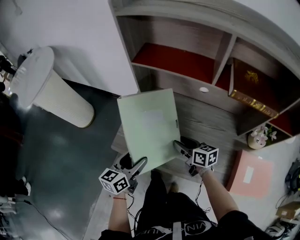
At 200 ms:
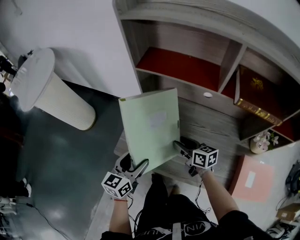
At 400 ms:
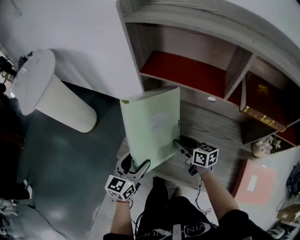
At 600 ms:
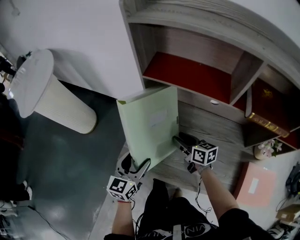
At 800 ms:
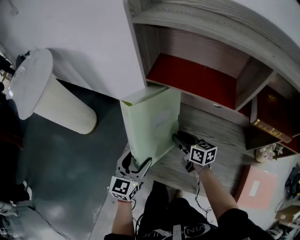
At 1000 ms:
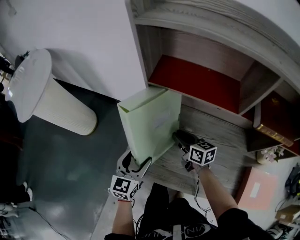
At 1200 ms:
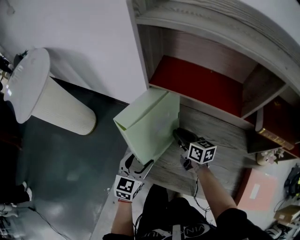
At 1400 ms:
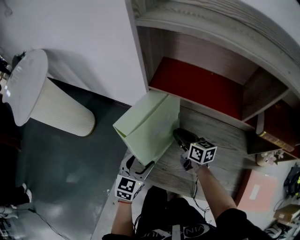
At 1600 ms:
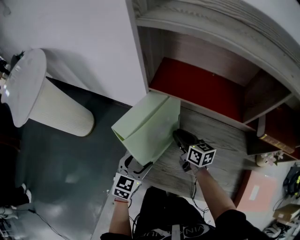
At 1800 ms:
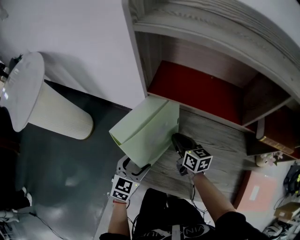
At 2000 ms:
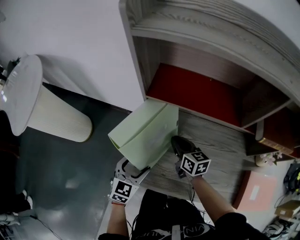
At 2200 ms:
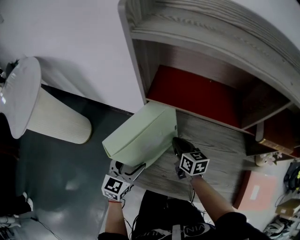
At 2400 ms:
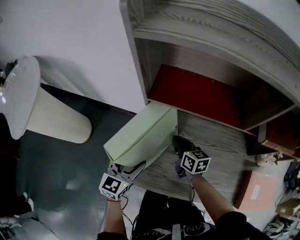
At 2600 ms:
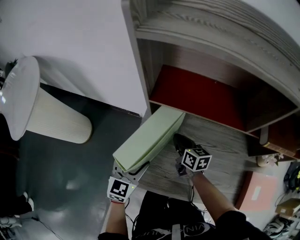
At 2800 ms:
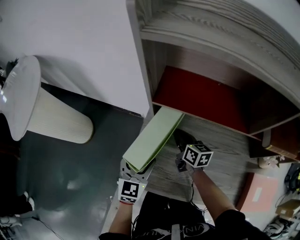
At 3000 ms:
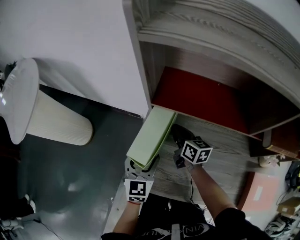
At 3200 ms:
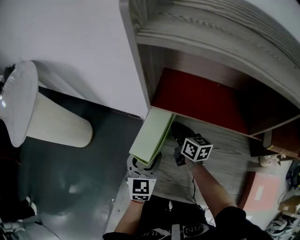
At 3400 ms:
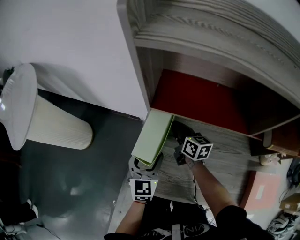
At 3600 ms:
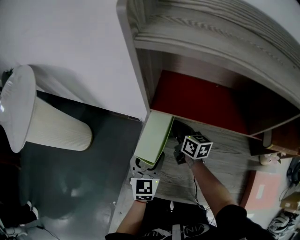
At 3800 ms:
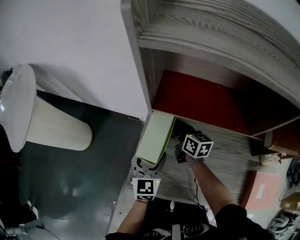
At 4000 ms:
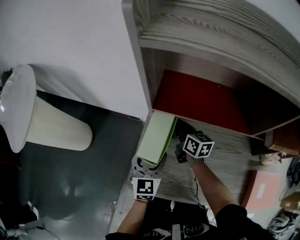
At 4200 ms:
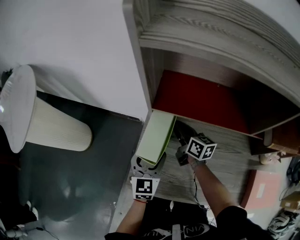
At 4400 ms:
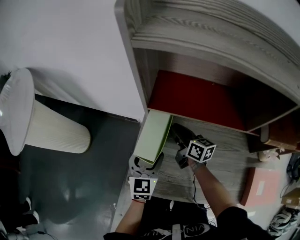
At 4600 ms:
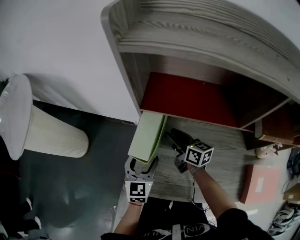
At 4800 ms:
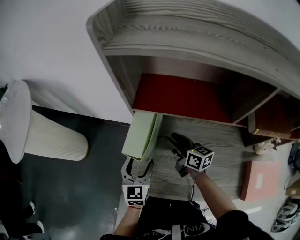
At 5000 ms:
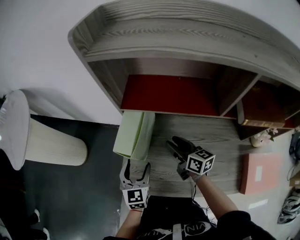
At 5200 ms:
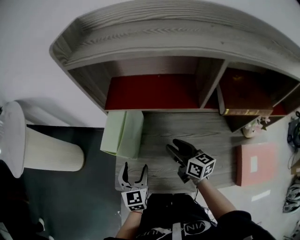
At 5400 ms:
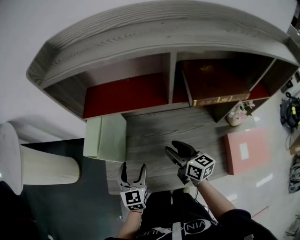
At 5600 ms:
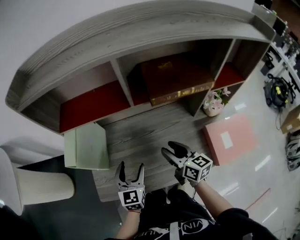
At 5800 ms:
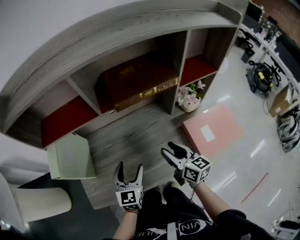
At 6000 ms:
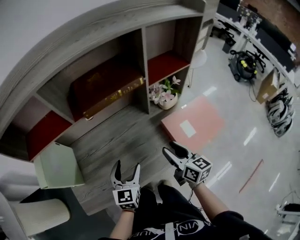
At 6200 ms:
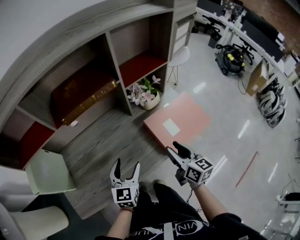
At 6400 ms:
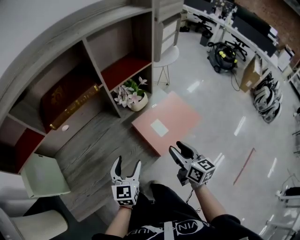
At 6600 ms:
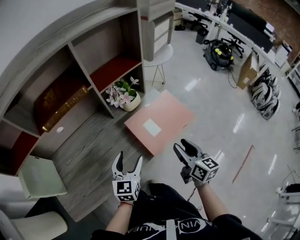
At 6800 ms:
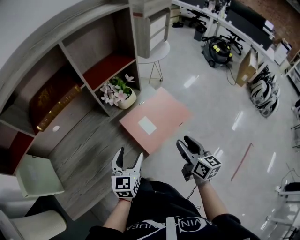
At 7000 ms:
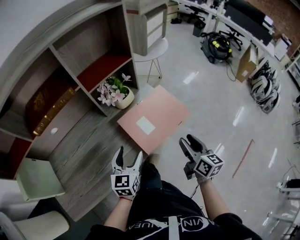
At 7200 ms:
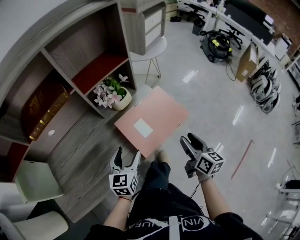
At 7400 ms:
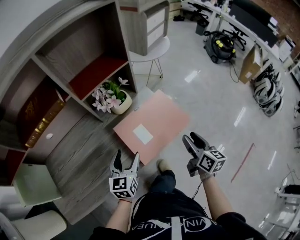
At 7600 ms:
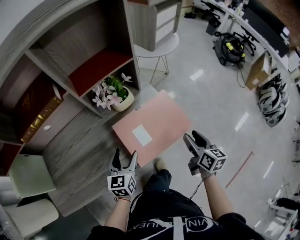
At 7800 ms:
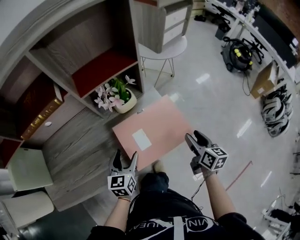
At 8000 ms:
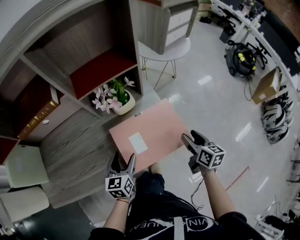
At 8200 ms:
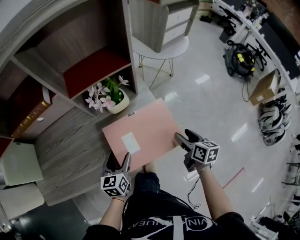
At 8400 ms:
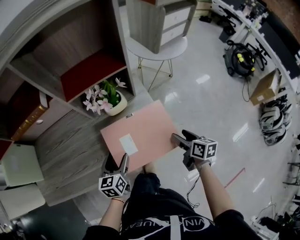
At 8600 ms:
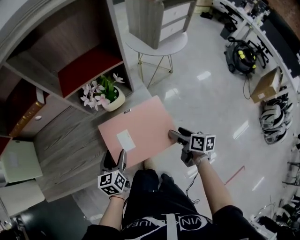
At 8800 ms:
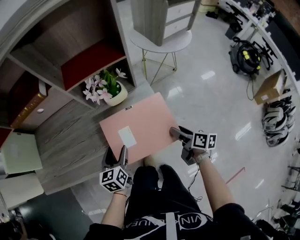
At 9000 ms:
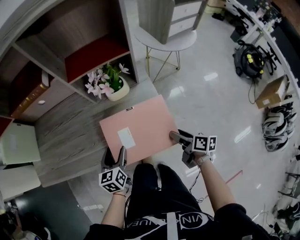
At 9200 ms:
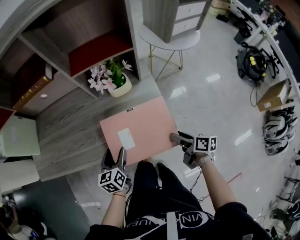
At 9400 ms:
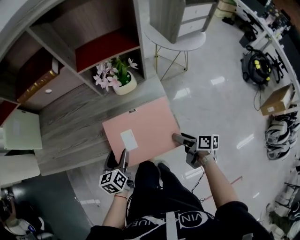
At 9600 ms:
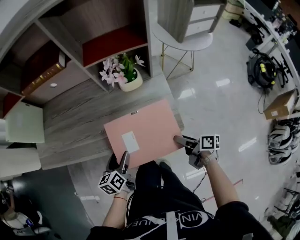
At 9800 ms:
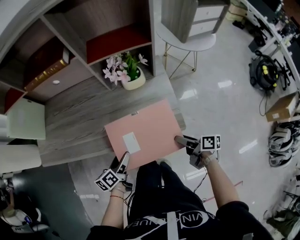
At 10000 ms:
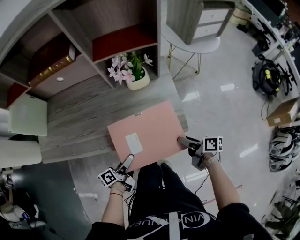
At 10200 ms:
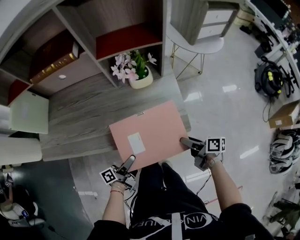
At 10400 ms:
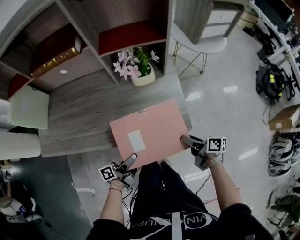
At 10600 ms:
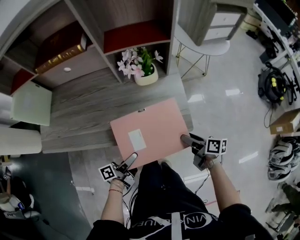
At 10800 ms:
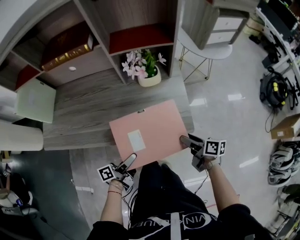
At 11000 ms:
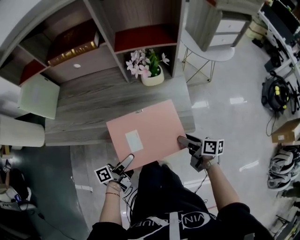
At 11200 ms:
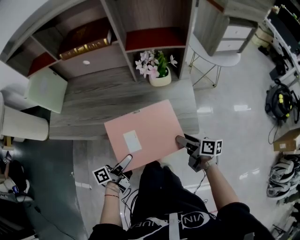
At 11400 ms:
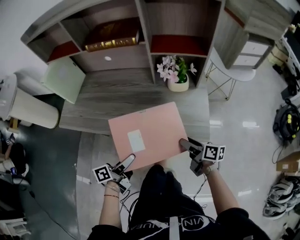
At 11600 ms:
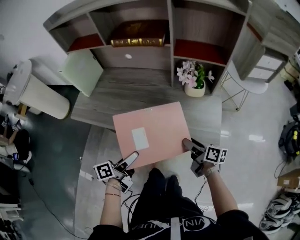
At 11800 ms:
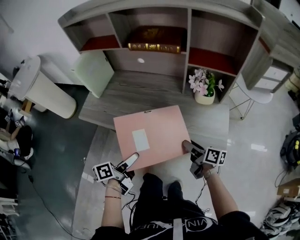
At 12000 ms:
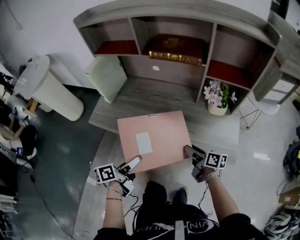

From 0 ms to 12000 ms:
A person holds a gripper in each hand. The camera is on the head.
From 0 ms to 1600 ms: Both grippers travel together forward, approximately 15 cm. The left gripper turns by roughly 30 degrees.
From 1600 ms to 3000 ms: Both grippers move forward, roughly 5 cm.
From 3000 ms to 4400 ms: The grippers make only small movements.
From 4400 ms to 6000 ms: The left gripper moves approximately 40 cm, and turns by about 30 degrees. Meanwhile the right gripper shifts by some 60 cm, and turns by roughly 40 degrees.
From 6000 ms to 7600 ms: The left gripper goes about 25 cm to the right. Meanwhile the right gripper heads to the right, covering some 35 cm, and turns by some 20 degrees.
From 7600 ms to 9000 ms: The right gripper travels downward by some 5 cm, and rotates roughly 40 degrees; the left gripper swivels some 30 degrees.
From 9000 ms to 10400 ms: The left gripper travels backward by roughly 10 cm, and twists about 50 degrees counterclockwise, seen from behind.
From 10400 ms to 12000 ms: The right gripper heads to the left, covering roughly 25 cm, and turns by some 20 degrees. Meanwhile the left gripper travels to the left and upward by roughly 25 cm, and changes its angle by some 30 degrees.

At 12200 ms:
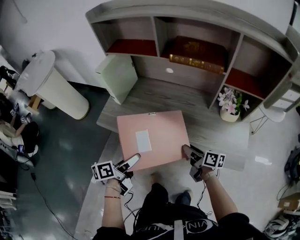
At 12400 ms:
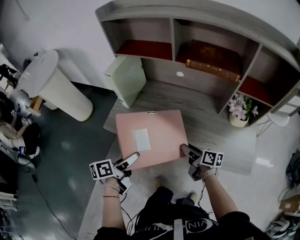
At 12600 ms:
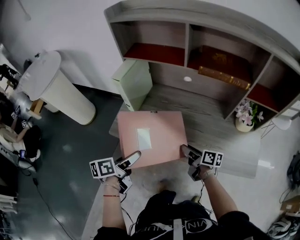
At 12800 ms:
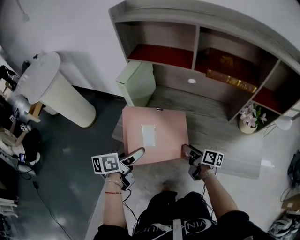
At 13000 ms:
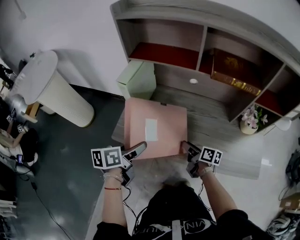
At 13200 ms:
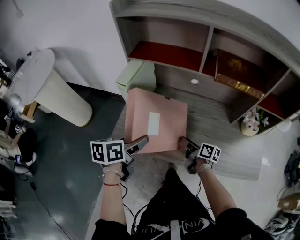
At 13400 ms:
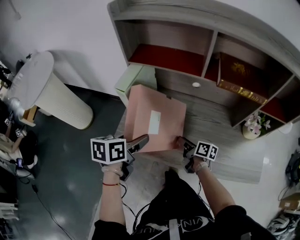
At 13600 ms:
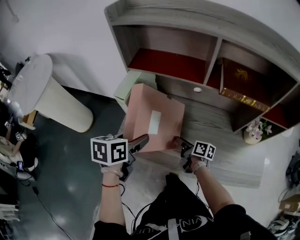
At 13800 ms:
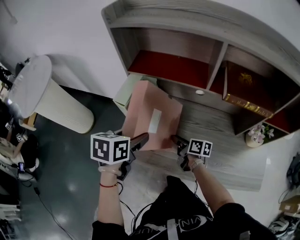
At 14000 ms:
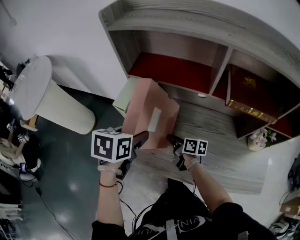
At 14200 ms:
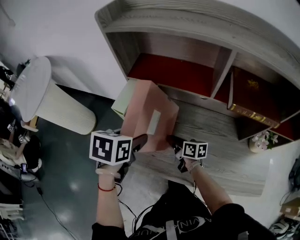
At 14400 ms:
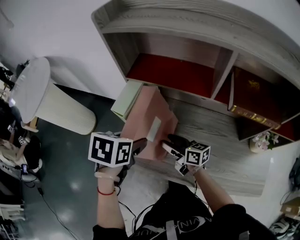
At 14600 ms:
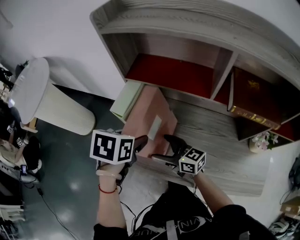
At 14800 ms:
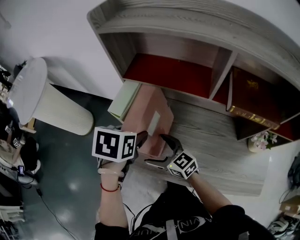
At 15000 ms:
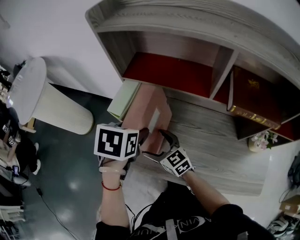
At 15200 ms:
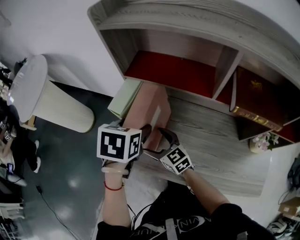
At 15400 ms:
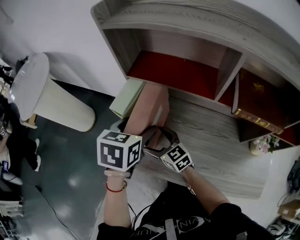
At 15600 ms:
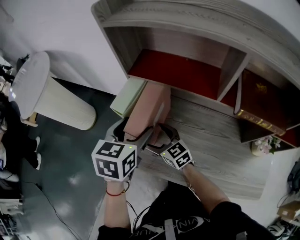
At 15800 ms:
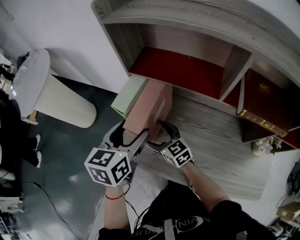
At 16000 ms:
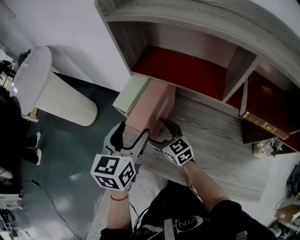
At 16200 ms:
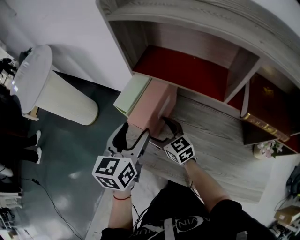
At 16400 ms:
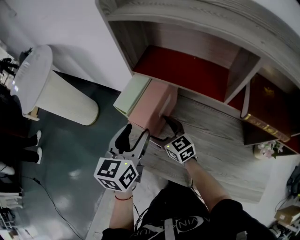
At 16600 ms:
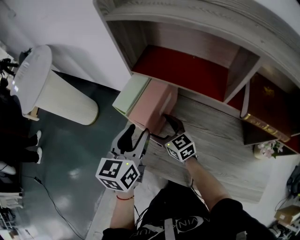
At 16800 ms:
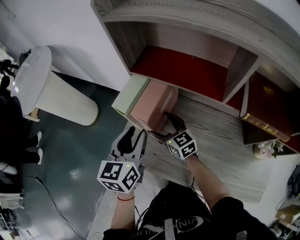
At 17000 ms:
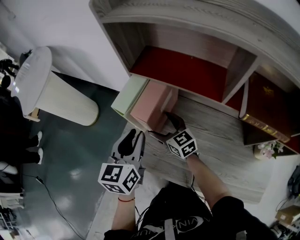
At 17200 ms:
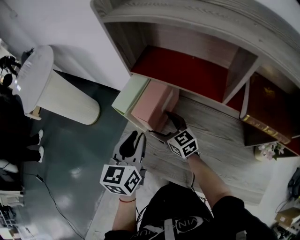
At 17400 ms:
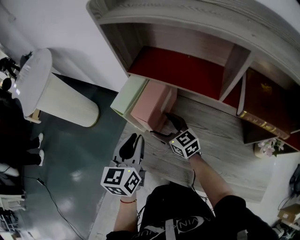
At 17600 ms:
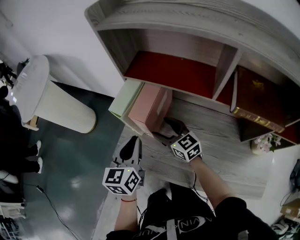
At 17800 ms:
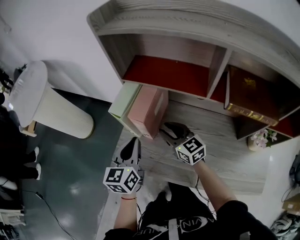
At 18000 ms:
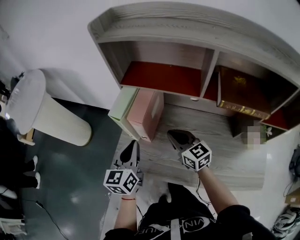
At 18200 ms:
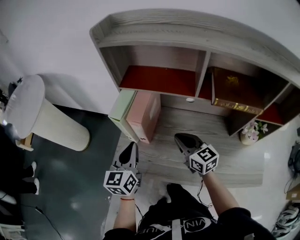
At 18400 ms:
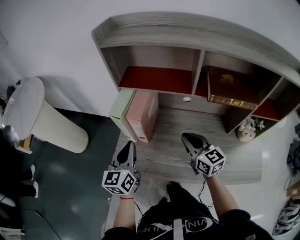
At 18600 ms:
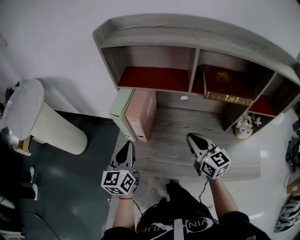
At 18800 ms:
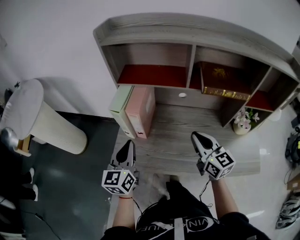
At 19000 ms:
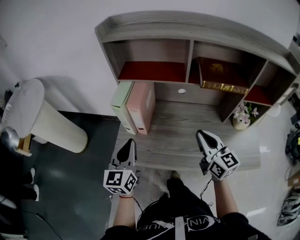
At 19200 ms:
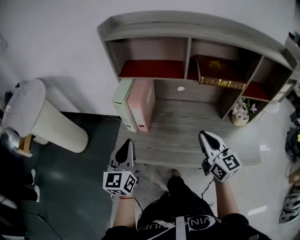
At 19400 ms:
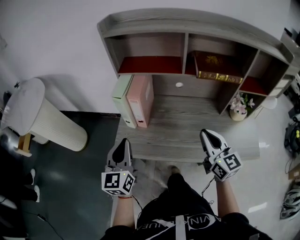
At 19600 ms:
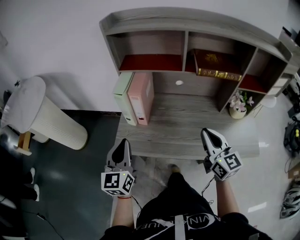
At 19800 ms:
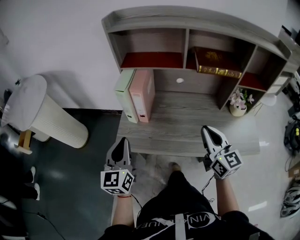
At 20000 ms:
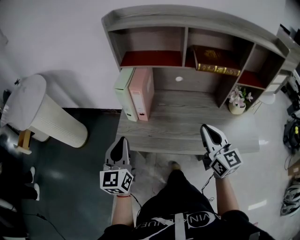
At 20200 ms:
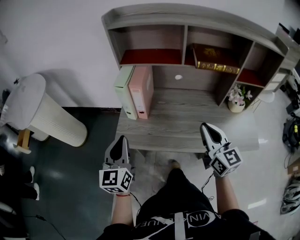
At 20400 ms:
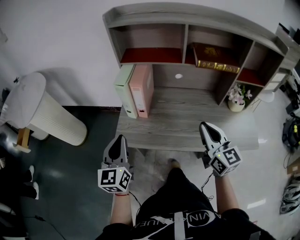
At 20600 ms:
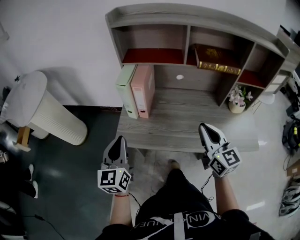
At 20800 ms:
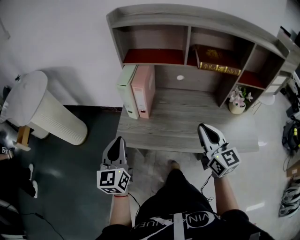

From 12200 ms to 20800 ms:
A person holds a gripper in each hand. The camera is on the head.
From 12200 ms to 13600 ms: The two grippers go about 30 cm forward and to the left. The left gripper turns by some 40 degrees.
From 13600 ms to 15000 ms: The right gripper heads to the left and upward, covering some 15 cm, rotates around the line of its fingers by some 60 degrees, counterclockwise from behind, and opens its fingers, while the left gripper heads forward, covering about 10 cm, and rotates about 20 degrees.
From 15000 ms to 16600 ms: The left gripper angles its fingers upward, by roughly 40 degrees. The right gripper is displaced forward by approximately 5 cm.
From 16600 ms to 18000 ms: The left gripper closes up. The right gripper is displaced to the right, backward and upward by approximately 10 cm, and closes its fingers.
From 18000 ms to 19400 ms: The left gripper is displaced backward and upward by approximately 10 cm. Meanwhile the right gripper goes approximately 25 cm backward, to the right and upward, and rotates some 30 degrees.
From 19400 ms to 20800 ms: The left gripper changes place by some 5 cm.

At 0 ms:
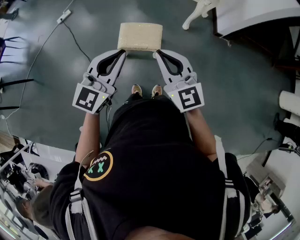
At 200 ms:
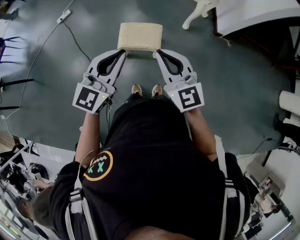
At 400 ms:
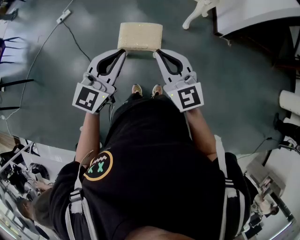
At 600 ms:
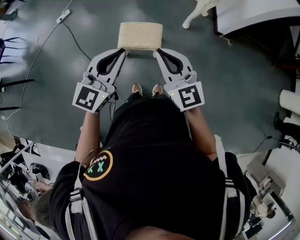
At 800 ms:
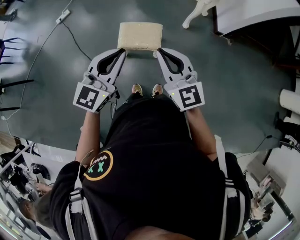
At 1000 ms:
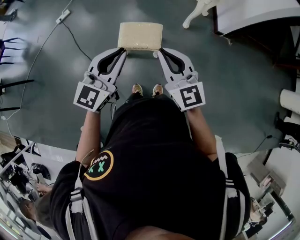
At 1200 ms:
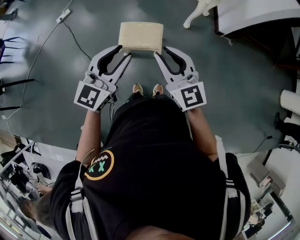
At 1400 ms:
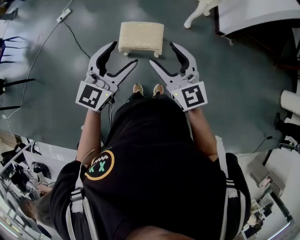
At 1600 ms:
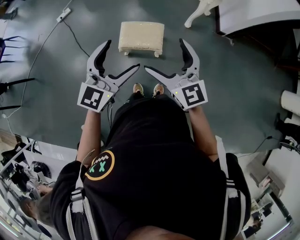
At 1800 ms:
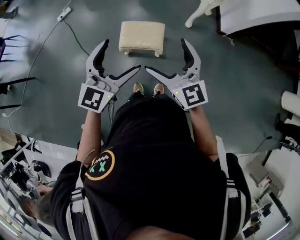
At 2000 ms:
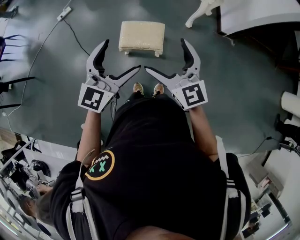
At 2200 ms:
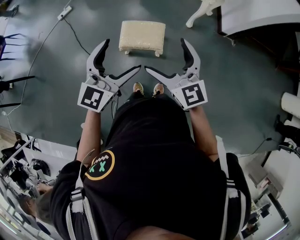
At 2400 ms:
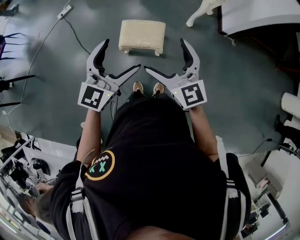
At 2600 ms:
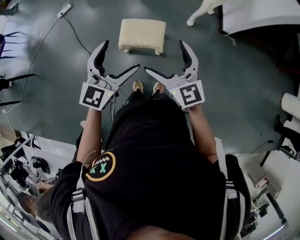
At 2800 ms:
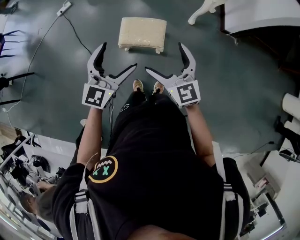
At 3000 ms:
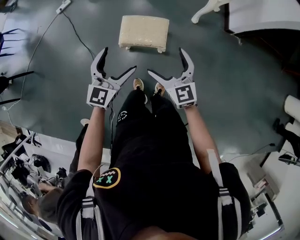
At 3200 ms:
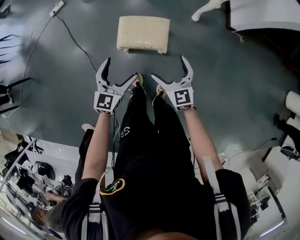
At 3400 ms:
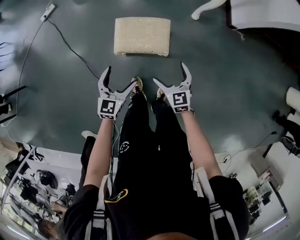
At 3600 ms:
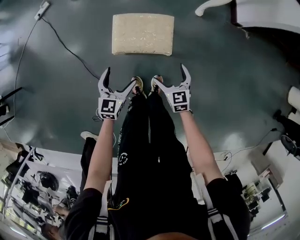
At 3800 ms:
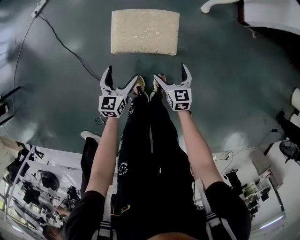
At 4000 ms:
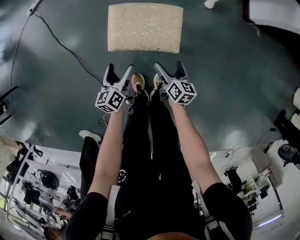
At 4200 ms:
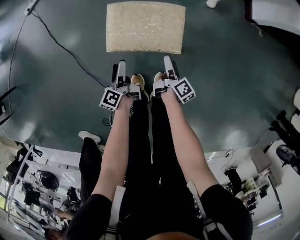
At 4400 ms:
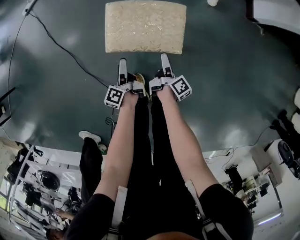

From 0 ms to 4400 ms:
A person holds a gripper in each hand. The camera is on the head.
From 0 ms to 1400 ms: The right gripper opens its fingers; the left gripper opens its fingers.
From 1400 ms to 3000 ms: Both grippers travel together downward, approximately 15 cm. The right gripper opens up.
From 3000 ms to 4400 ms: The grippers both shift downward by roughly 50 cm. The left gripper twists approximately 90 degrees counterclockwise, seen from behind; the right gripper twists approximately 90 degrees clockwise, seen from behind.
